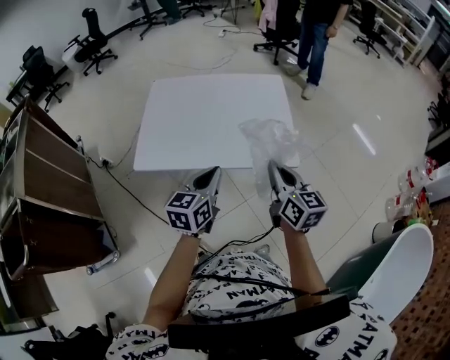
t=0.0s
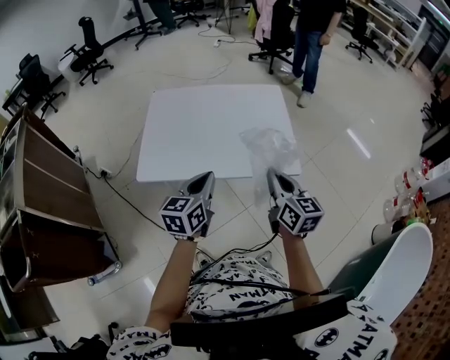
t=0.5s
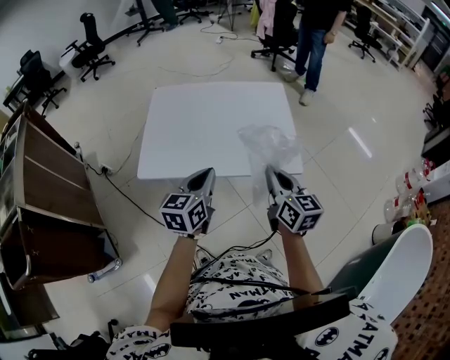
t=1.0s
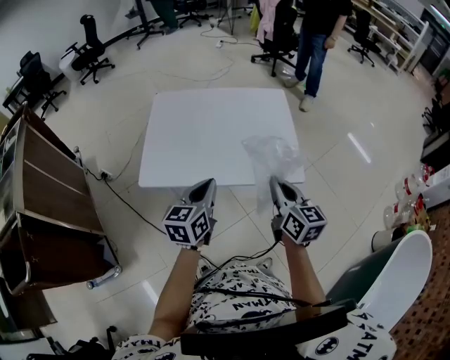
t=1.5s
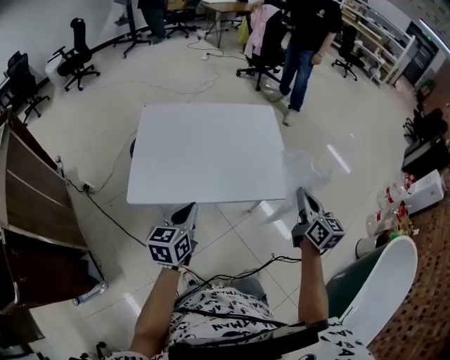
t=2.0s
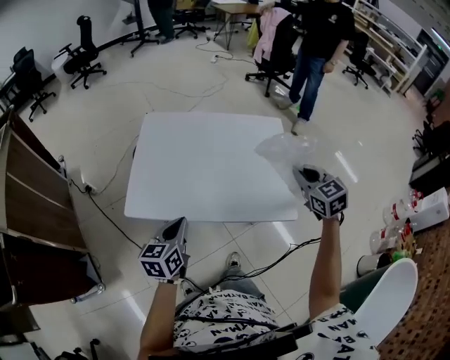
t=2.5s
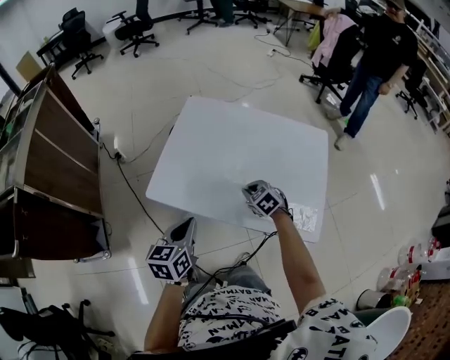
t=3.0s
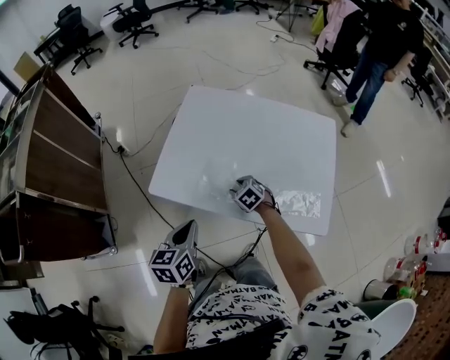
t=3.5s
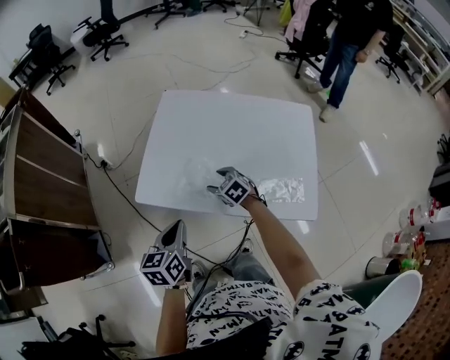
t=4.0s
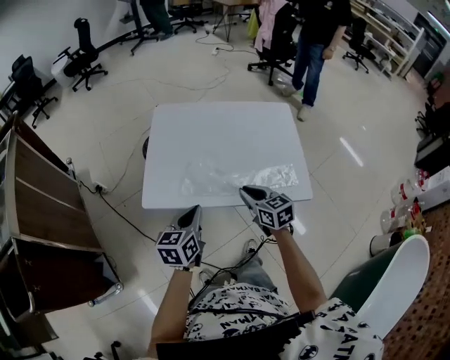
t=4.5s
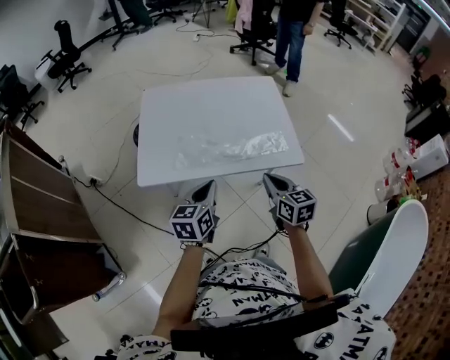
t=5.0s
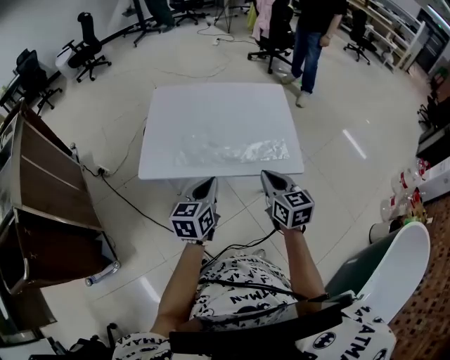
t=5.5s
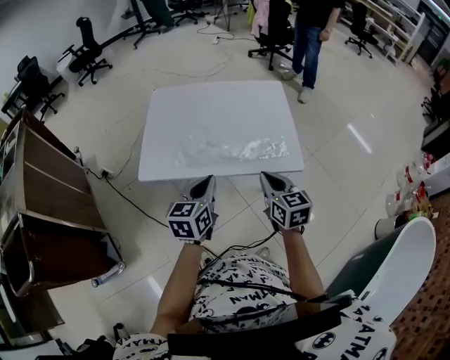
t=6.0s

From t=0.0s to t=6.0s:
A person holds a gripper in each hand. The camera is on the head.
From t=0.0s to t=2.0s: The right gripper moves to the right, some 5 cm; the left gripper is displaced to the left by approximately 10 cm.
From t=2.0s to t=4.0s: The right gripper shifts by some 50 cm, tips its fingers downward by roughly 40 degrees, and opens. Meanwhile the left gripper shifts by approximately 10 cm, and changes its angle by approximately 30 degrees.
From t=4.0s to t=6.0s: The left gripper ends up some 15 cm from where it was, and changes its angle by roughly 20 degrees; the right gripper ends up some 35 cm from where it was, turns by roughly 50 degrees, and closes up.

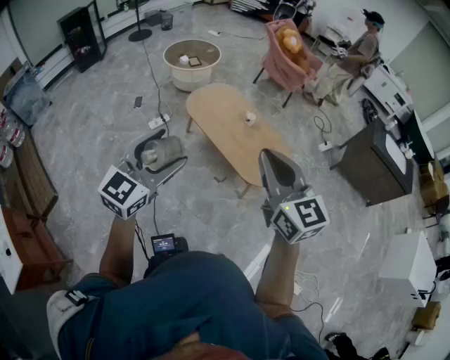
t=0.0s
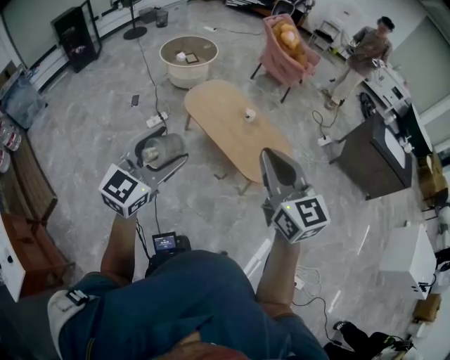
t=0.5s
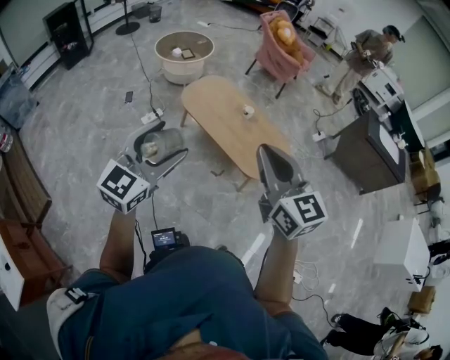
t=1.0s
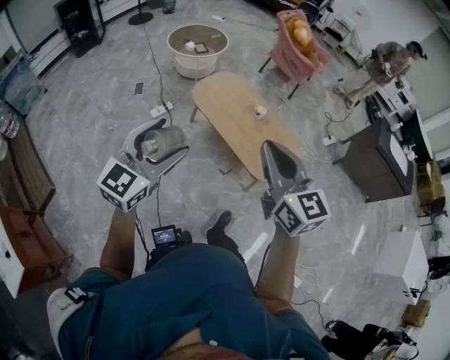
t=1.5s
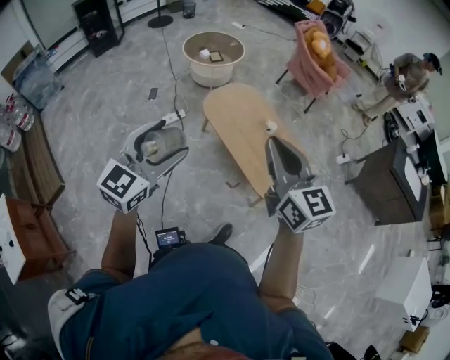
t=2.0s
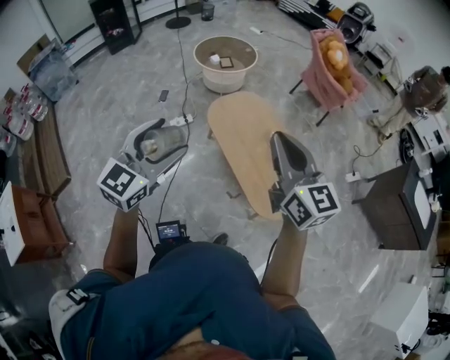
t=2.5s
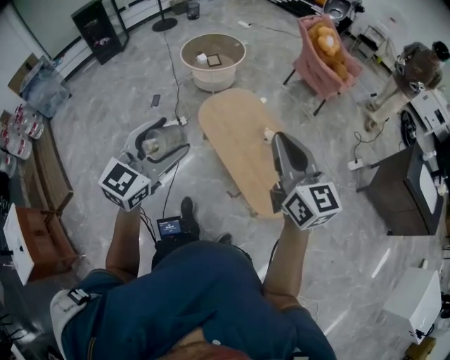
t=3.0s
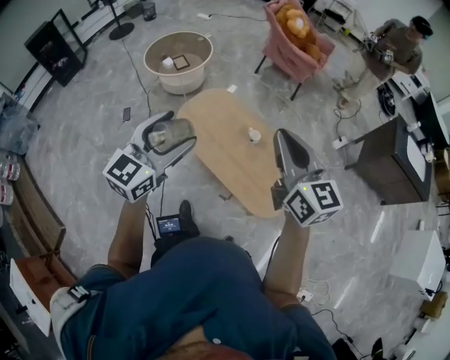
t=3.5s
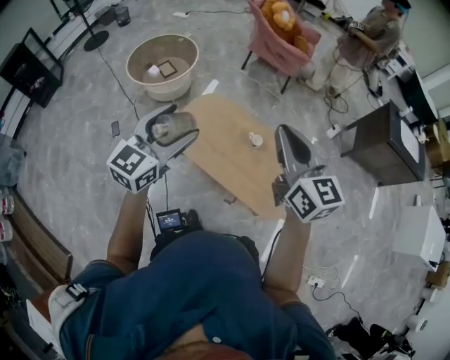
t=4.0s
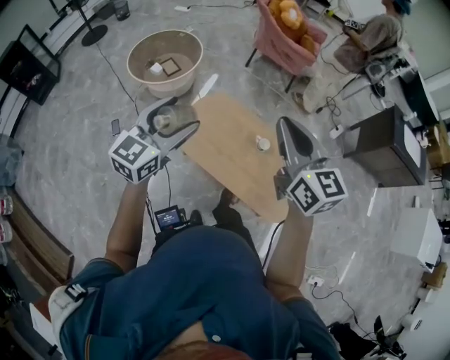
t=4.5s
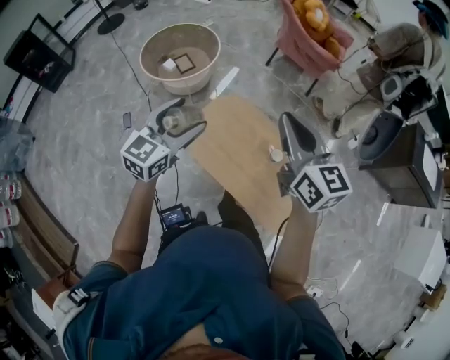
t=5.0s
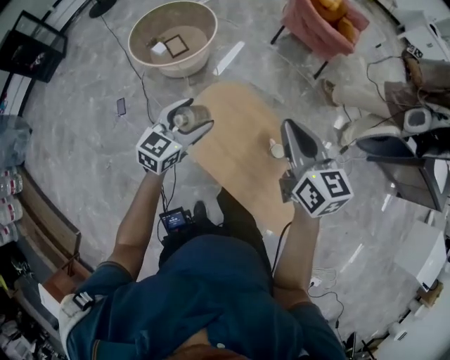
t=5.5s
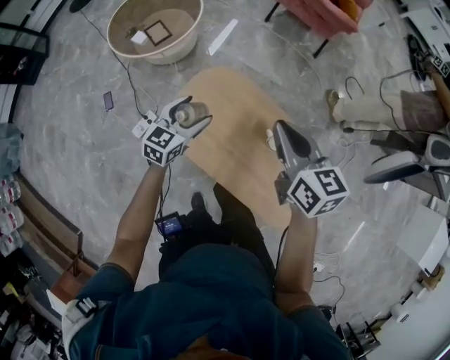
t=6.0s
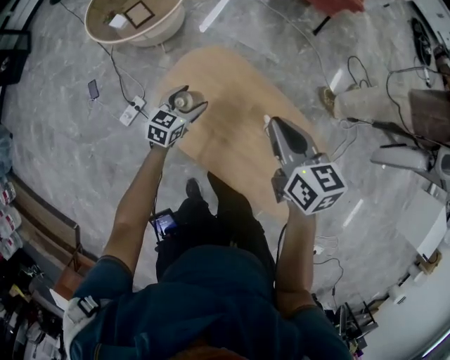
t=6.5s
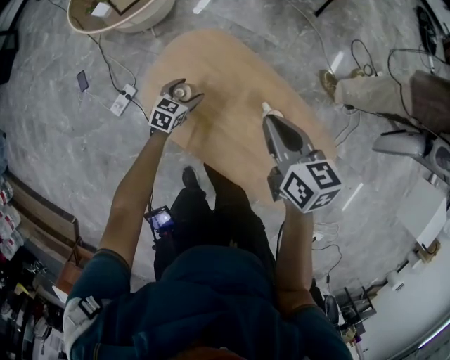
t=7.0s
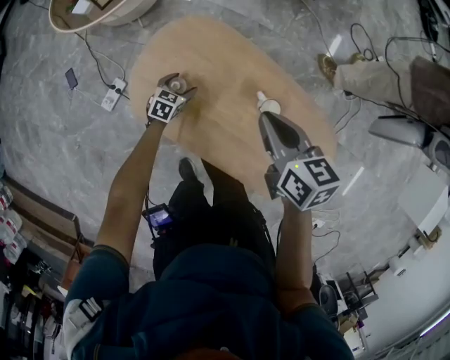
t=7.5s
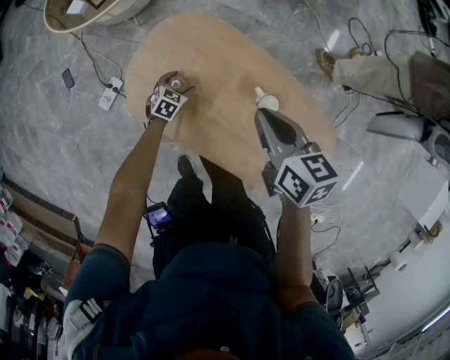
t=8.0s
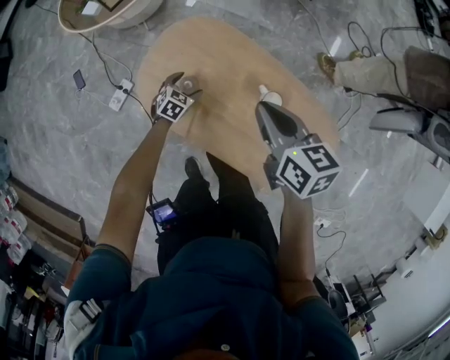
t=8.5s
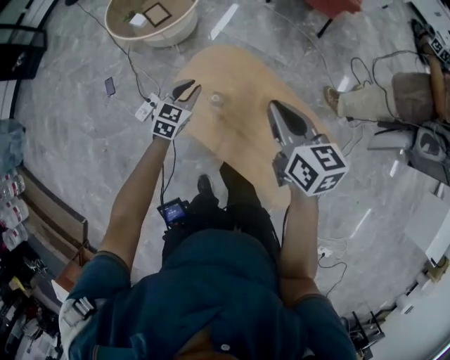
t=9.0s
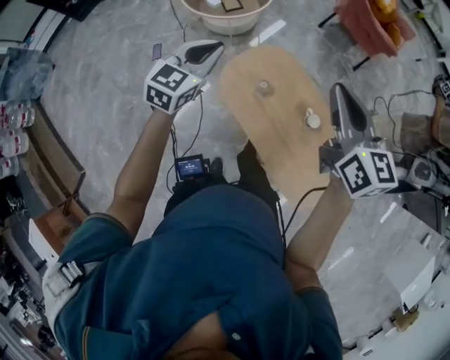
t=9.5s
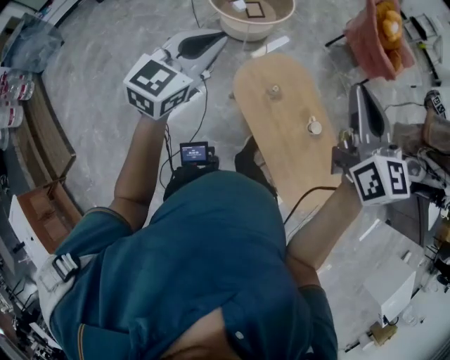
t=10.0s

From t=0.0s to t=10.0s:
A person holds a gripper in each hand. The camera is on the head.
From t=0.0s to t=2.0s: The left gripper heads forward and to the left, covering roughly 15 cm; the right gripper goes roughly 15 cm forward.
From t=2.0s to t=4.0s: The left gripper ends up some 40 cm from where it was, and swivels some 20 degrees. Meanwhile the right gripper ends up approximately 35 cm from where it was, and changes its angle by roughly 20 degrees.
From t=4.0s to t=6.0s: The left gripper is displaced downward and forward by roughly 50 cm, and swivels about 20 degrees, while the right gripper moves forward and downward, approximately 40 cm, and changes its angle by roughly 30 degrees.
From t=6.0s to t=8.0s: The right gripper goes approximately 20 cm downward, while the left gripper goes approximately 40 cm downward, and points its fingers approximately 30 degrees further downward.
From t=8.0s to t=10.0s: The left gripper moves upward, approximately 80 cm, angles its fingers upward, by roughly 50 degrees, and closes. The right gripper goes about 50 cm upward, and tilts its fingers some 30 degrees upward.

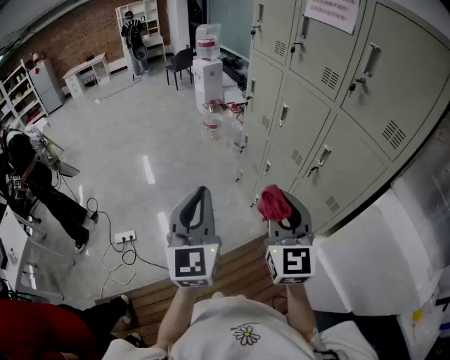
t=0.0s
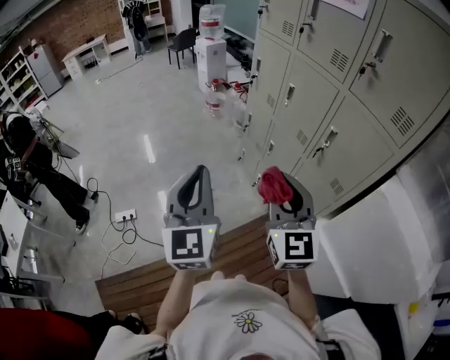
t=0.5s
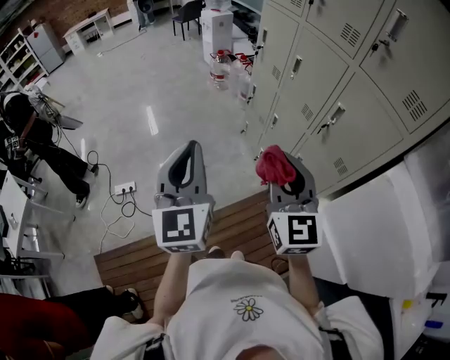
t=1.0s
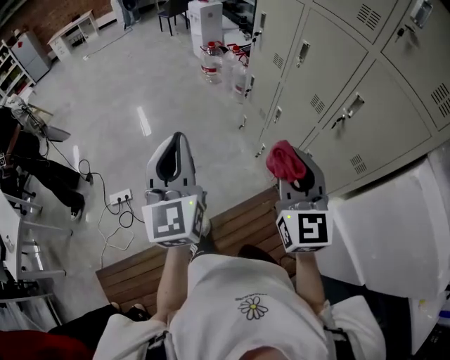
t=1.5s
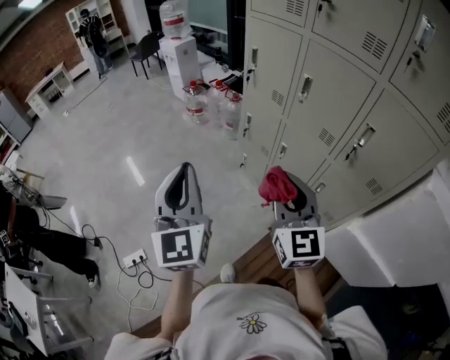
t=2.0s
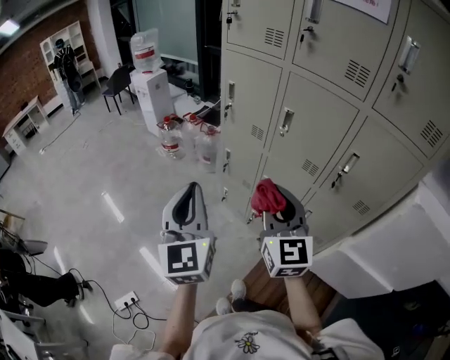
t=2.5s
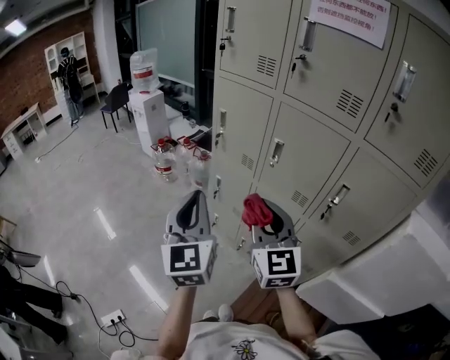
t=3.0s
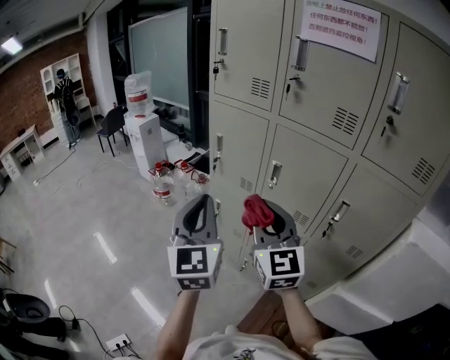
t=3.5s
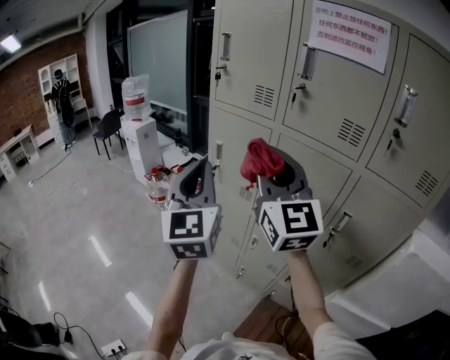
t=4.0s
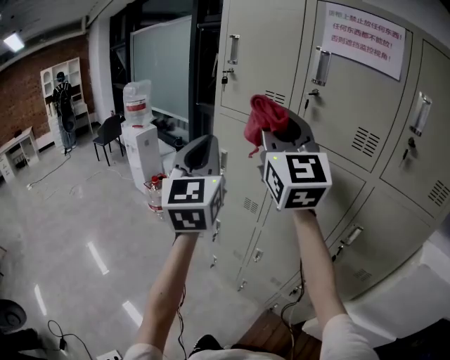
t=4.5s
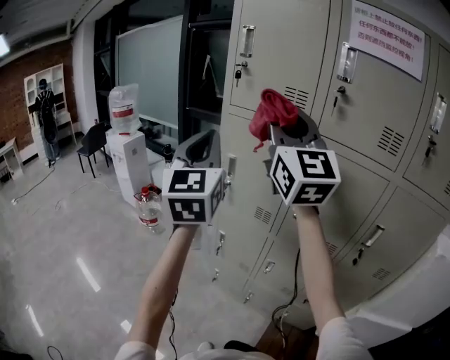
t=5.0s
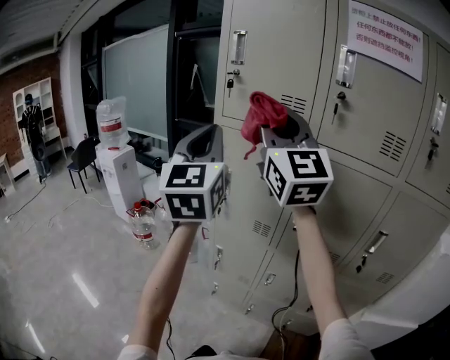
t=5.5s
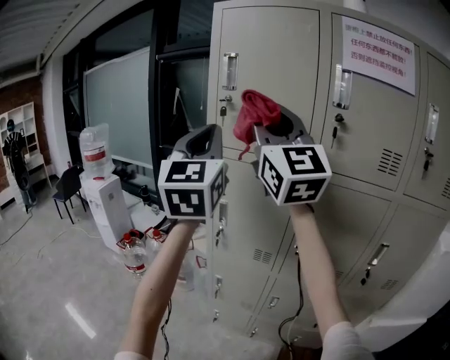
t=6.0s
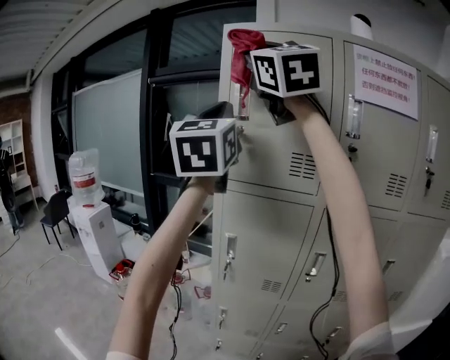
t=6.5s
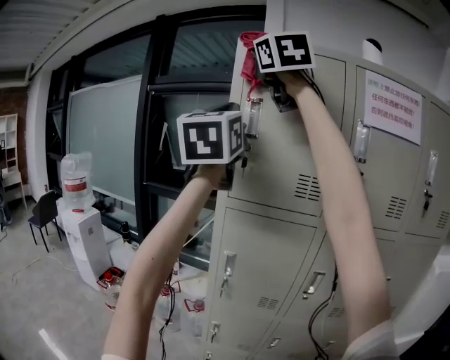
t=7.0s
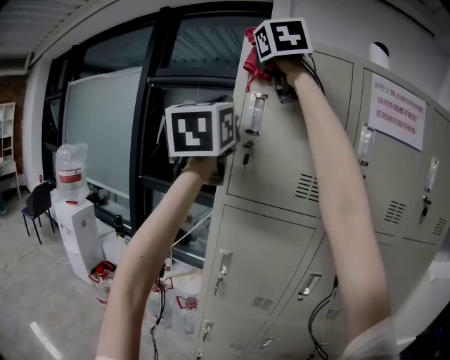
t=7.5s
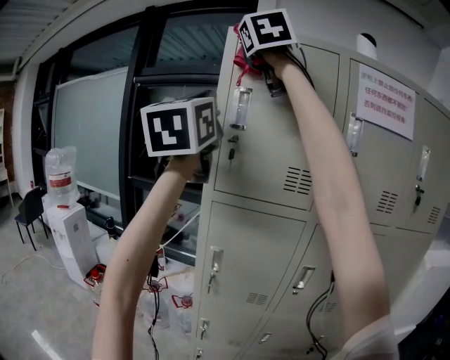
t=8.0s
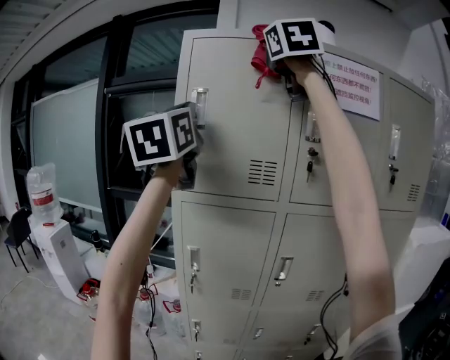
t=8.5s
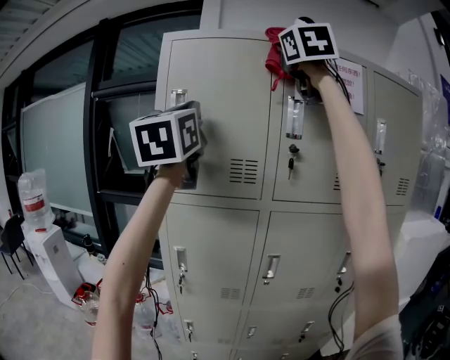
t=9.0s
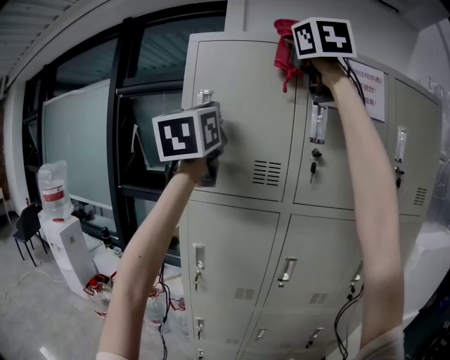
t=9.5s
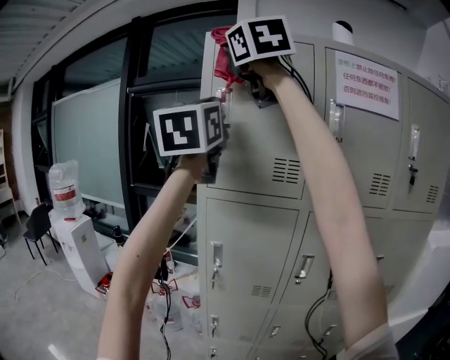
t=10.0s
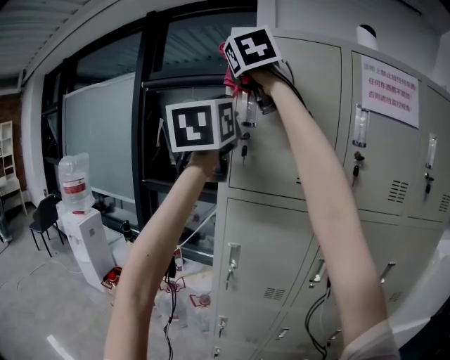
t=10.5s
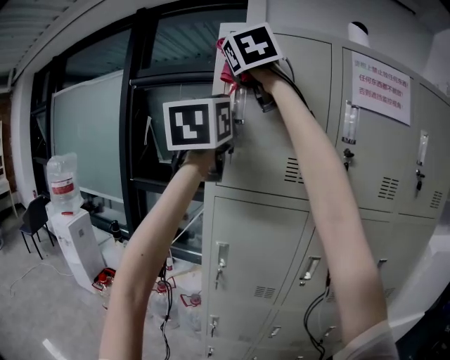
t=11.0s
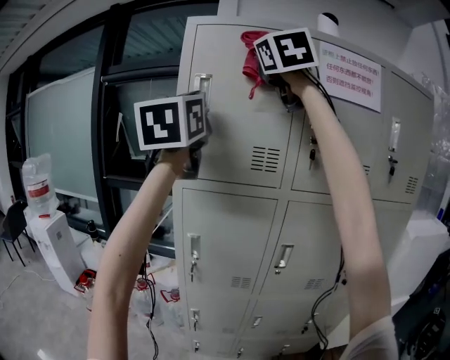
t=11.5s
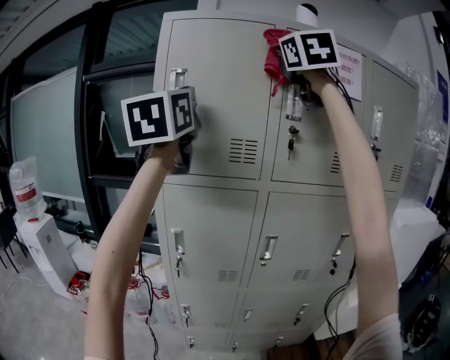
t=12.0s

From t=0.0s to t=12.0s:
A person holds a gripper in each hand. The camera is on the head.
From t=0.0s to t=2.0s: The right gripper is displaced forward, downward and to the left by about 25 cm; the left gripper moves forward and to the left, roughly 25 cm.
From t=2.0s to t=4.0s: The two grippers go approximately 30 cm forward and upward. The right gripper turns by approximately 20 degrees.
From t=4.0s to t=6.0s: The left gripper moves forward, approximately 25 cm, and turns by some 20 degrees, while the right gripper is displaced forward, upward and to the left by some 25 cm, and swivels about 20 degrees.
From t=6.0s to t=8.0s: The right gripper goes some 30 cm upward and forward, and rotates about 30 degrees; the left gripper moves upward, forward and to the left, about 20 cm.
From t=8.0s to t=10.0s: The right gripper is displaced backward by about 5 cm, and reaches roughly 25 cm to the right, then returns, while the left gripper is displaced to the right by some 5 cm.
From t=10.0s to t=12.0s: The right gripper travels to the right by roughly 20 cm, and swivels about 30 degrees, while the left gripper changes place by approximately 5 cm.
